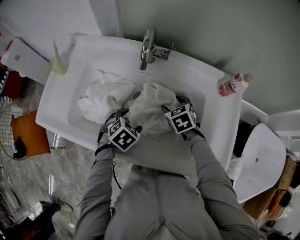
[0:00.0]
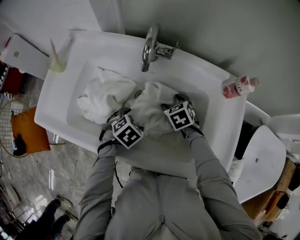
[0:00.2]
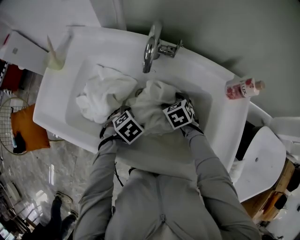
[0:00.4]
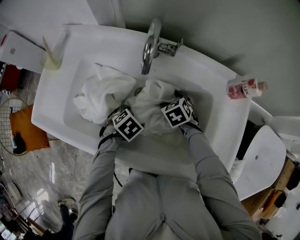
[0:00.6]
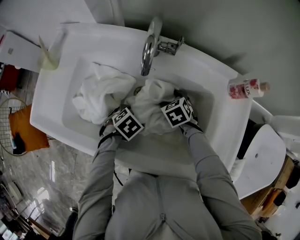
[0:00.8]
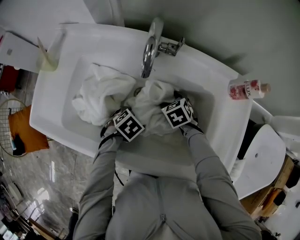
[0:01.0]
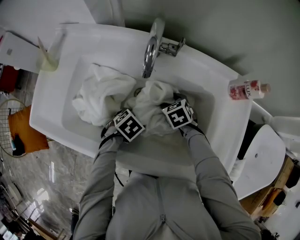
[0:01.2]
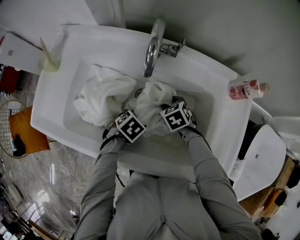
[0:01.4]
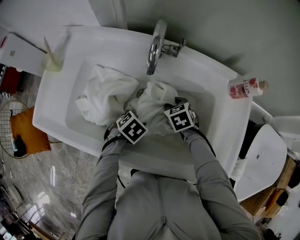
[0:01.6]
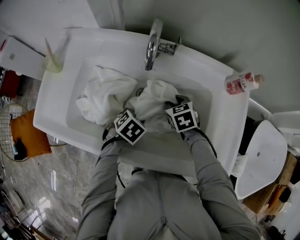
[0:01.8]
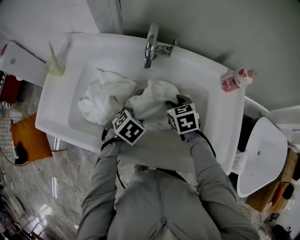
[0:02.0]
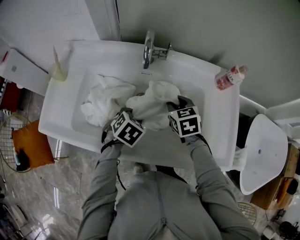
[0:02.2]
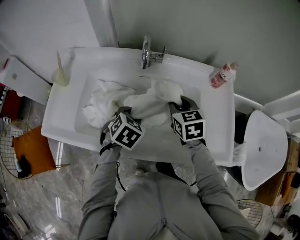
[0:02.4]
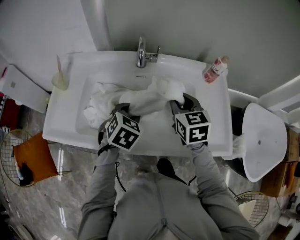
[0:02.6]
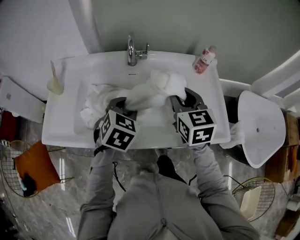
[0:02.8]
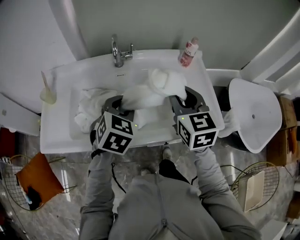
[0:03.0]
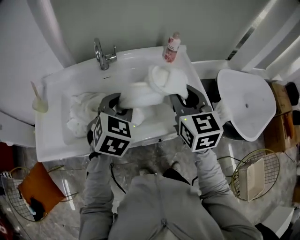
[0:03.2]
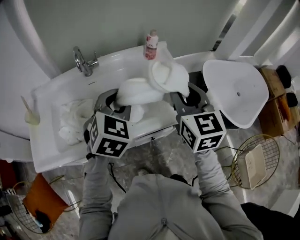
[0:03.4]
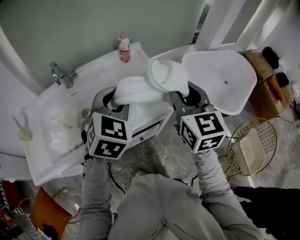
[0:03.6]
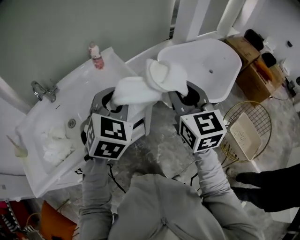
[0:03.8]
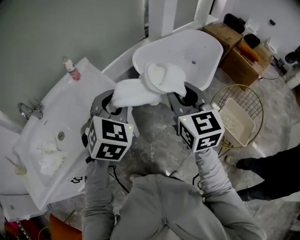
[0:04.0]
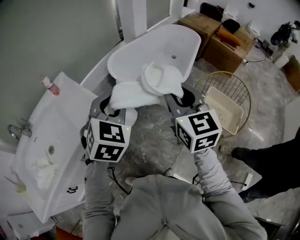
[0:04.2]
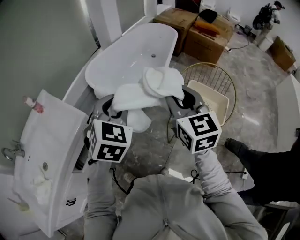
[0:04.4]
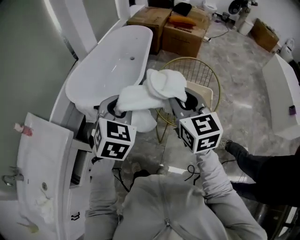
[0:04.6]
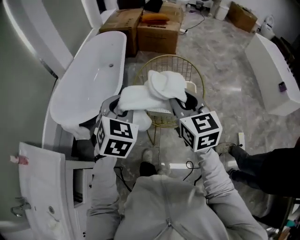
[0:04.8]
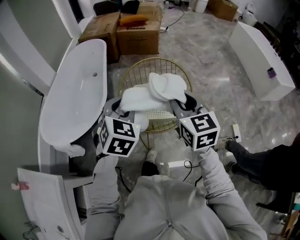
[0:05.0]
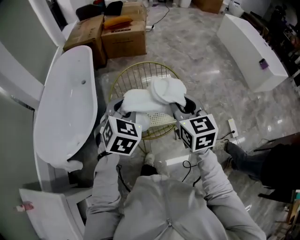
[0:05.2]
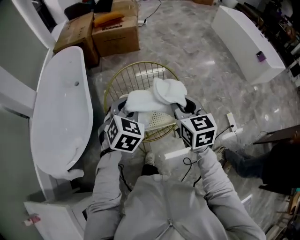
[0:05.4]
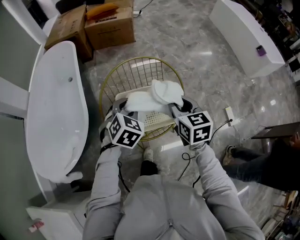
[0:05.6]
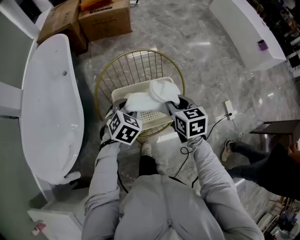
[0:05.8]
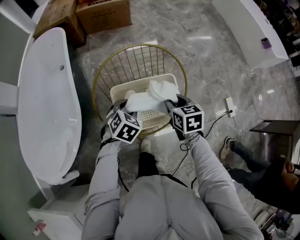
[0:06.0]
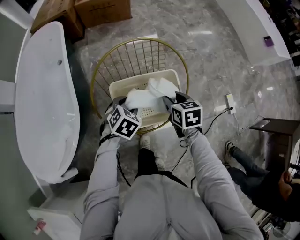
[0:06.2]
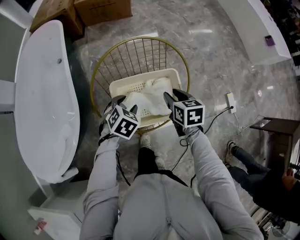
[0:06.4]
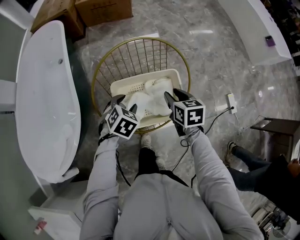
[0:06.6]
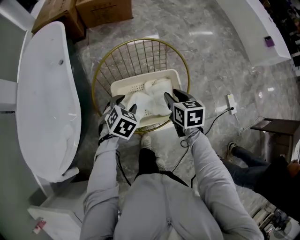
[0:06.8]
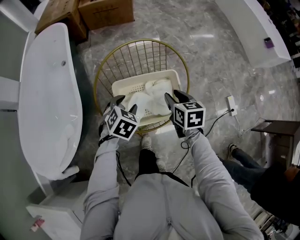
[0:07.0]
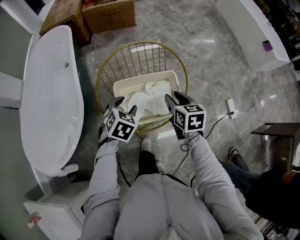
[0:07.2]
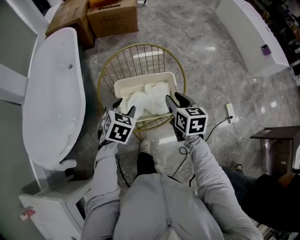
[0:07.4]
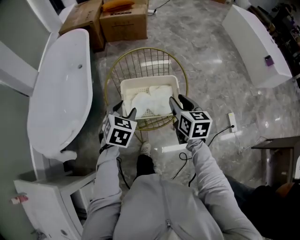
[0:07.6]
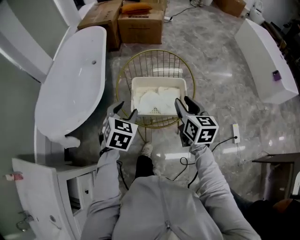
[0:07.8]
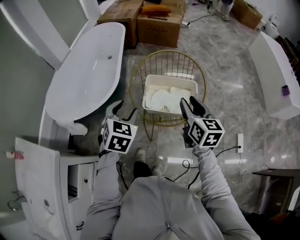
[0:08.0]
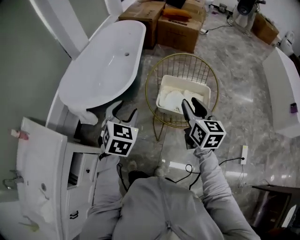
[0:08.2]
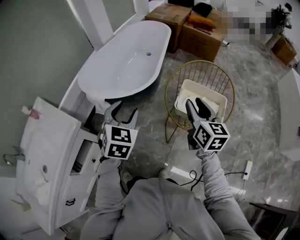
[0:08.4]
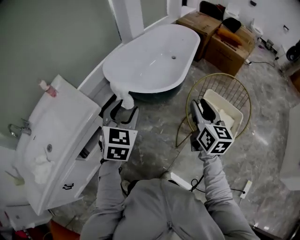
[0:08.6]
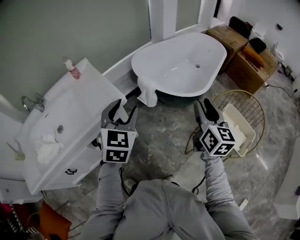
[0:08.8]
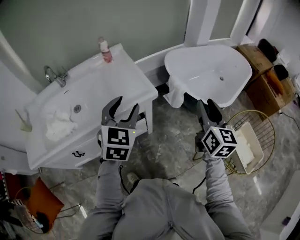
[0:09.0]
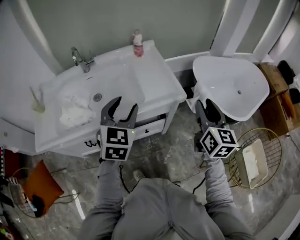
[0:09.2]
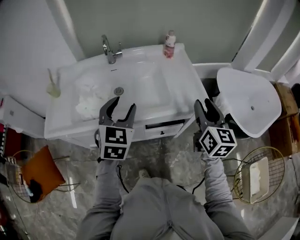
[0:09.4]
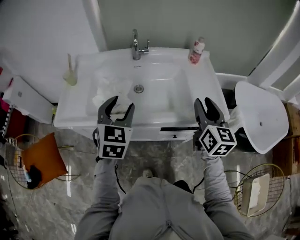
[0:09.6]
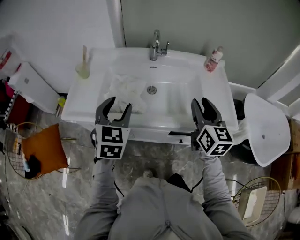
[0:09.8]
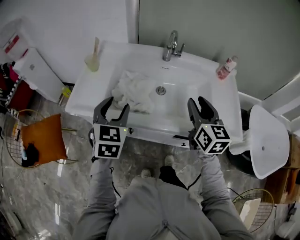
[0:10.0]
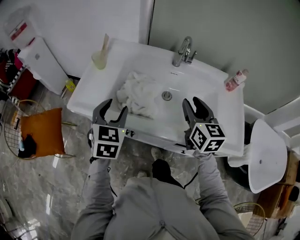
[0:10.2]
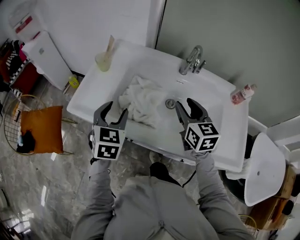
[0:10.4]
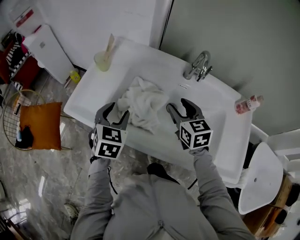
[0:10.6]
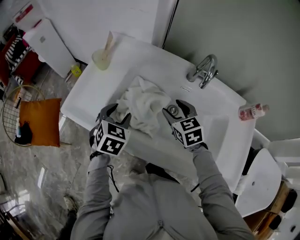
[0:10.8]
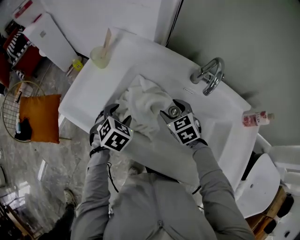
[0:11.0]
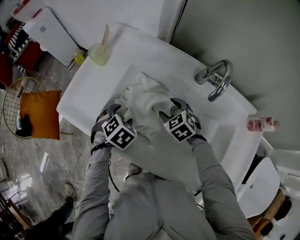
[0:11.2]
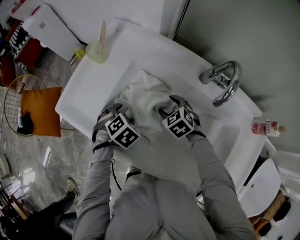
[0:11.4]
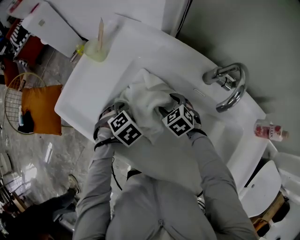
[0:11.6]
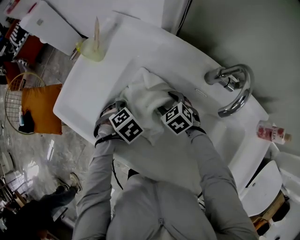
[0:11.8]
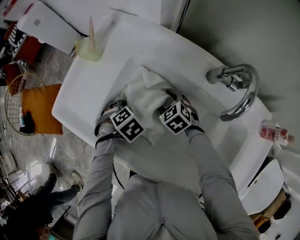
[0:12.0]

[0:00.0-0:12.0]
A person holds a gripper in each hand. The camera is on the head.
0:00.0 to 0:01.6: Both grippers travel together downward, some 5 cm. The left gripper closes its fingers, while the right gripper closes its fingers.
0:01.6 to 0:03.0: The left gripper goes roughly 25 cm upward, and tilts its fingers some 30 degrees upward; the right gripper heads upward and backward, covering about 35 cm, and tilts its fingers roughly 40 degrees upward.
0:03.0 to 0:04.4: The pair of grippers is taken some 70 cm. The right gripper changes its angle by approximately 50 degrees, while the left gripper swivels roughly 50 degrees.
0:04.4 to 0:06.0: The pair of grippers is taken some 50 cm. The left gripper swivels some 60 degrees, while the right gripper tilts its fingers about 30 degrees downward.
0:06.0 to 0:07.6: Both grippers move upward and backward, approximately 15 cm.
0:07.6 to 0:09.0: Both grippers are carried about 60 cm. The right gripper changes its angle by roughly 60 degrees. Meanwhile the left gripper swivels approximately 70 degrees.
0:09.0 to 0:10.4: The two grippers travel together, approximately 60 cm. The right gripper swivels approximately 60 degrees; the left gripper changes its angle by some 50 degrees.
0:10.4 to 0:12.0: Both grippers travel together downward, roughly 30 cm. The right gripper tips its fingers downward by roughly 40 degrees, and opens. Meanwhile the left gripper tips its fingers downward by roughly 50 degrees.

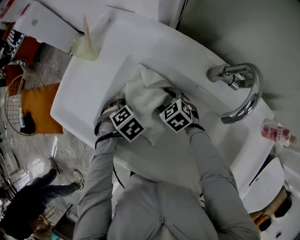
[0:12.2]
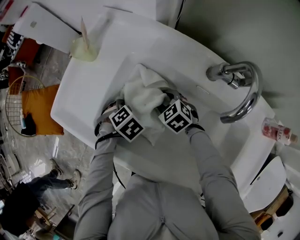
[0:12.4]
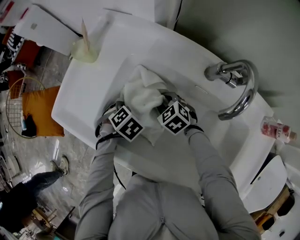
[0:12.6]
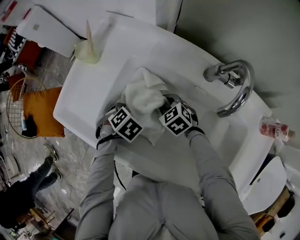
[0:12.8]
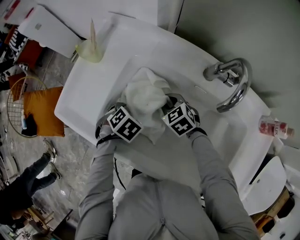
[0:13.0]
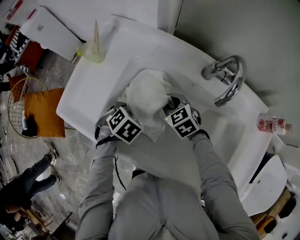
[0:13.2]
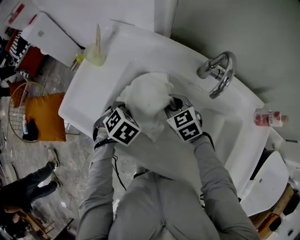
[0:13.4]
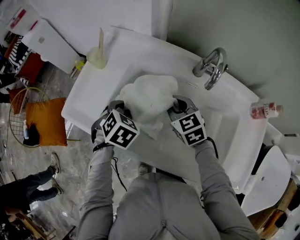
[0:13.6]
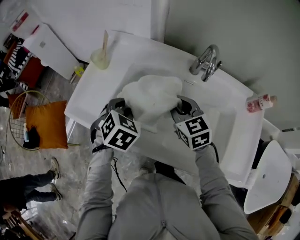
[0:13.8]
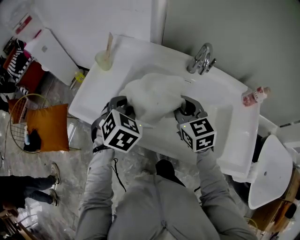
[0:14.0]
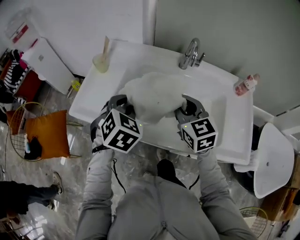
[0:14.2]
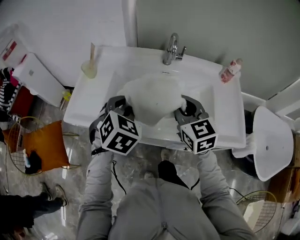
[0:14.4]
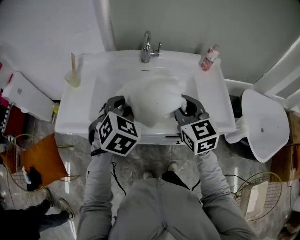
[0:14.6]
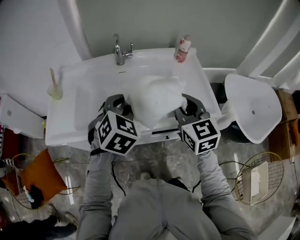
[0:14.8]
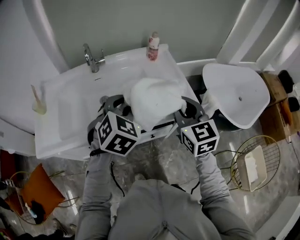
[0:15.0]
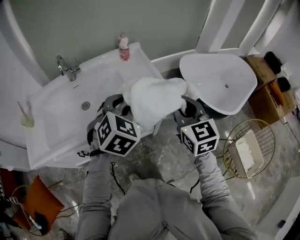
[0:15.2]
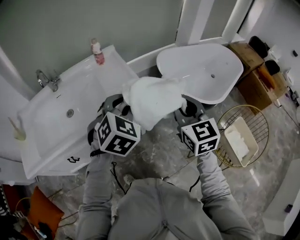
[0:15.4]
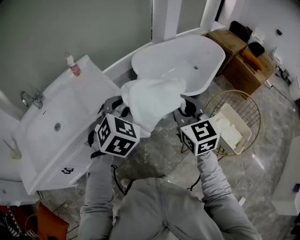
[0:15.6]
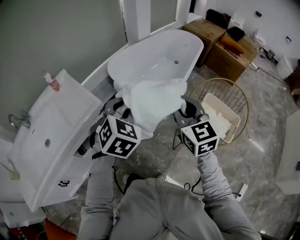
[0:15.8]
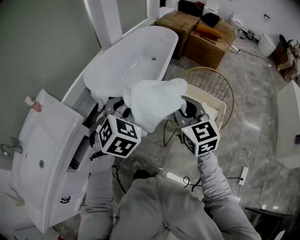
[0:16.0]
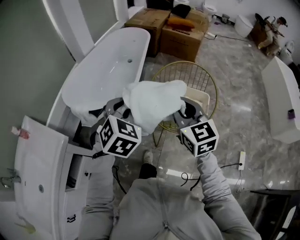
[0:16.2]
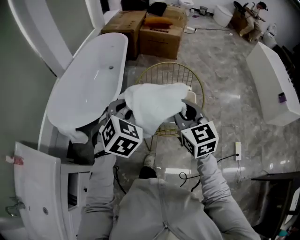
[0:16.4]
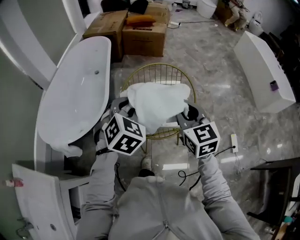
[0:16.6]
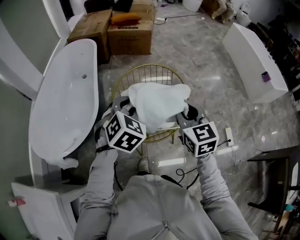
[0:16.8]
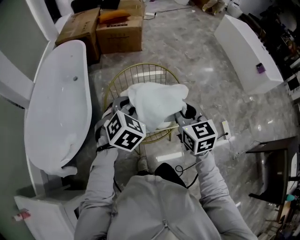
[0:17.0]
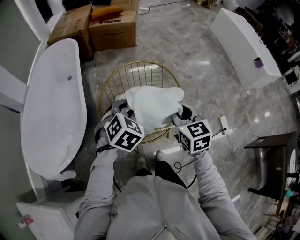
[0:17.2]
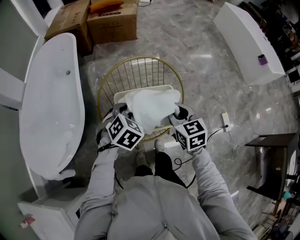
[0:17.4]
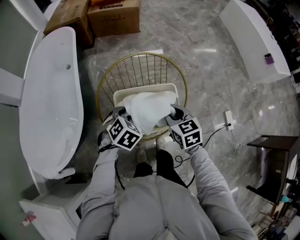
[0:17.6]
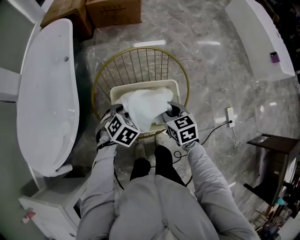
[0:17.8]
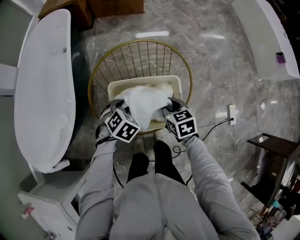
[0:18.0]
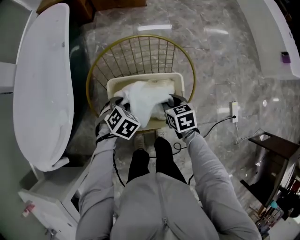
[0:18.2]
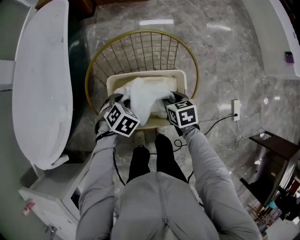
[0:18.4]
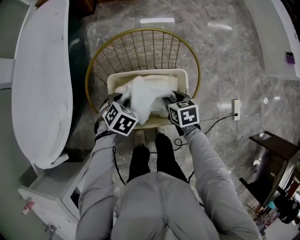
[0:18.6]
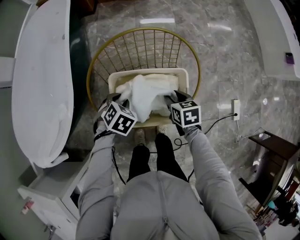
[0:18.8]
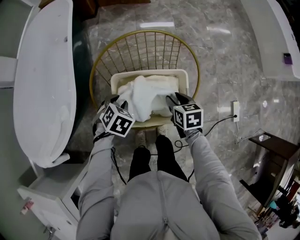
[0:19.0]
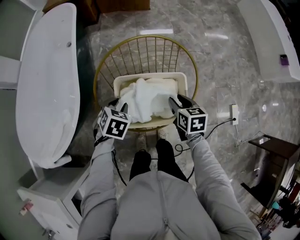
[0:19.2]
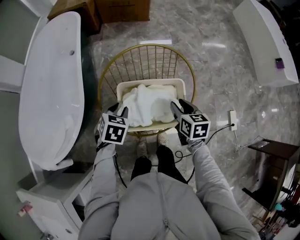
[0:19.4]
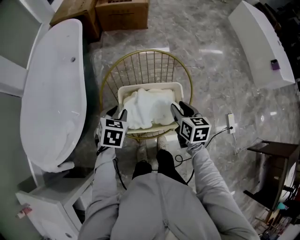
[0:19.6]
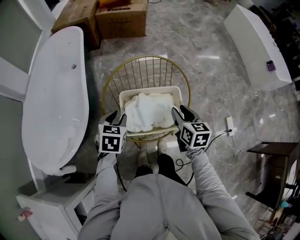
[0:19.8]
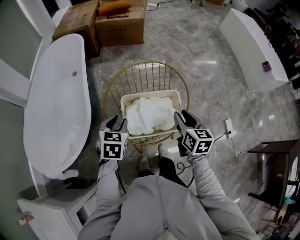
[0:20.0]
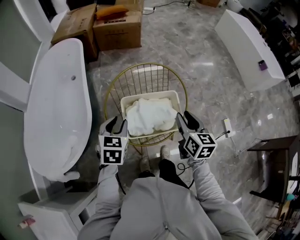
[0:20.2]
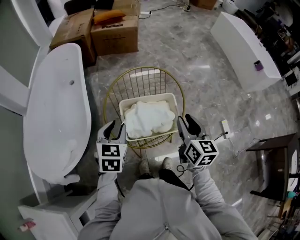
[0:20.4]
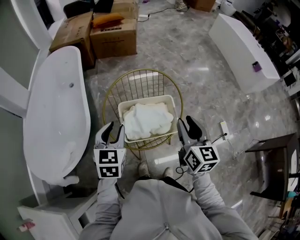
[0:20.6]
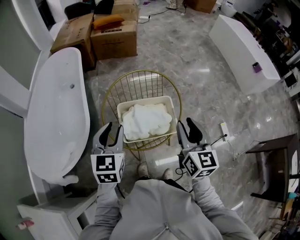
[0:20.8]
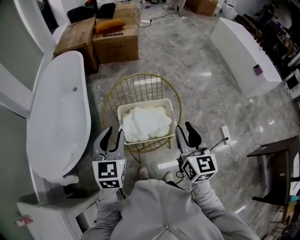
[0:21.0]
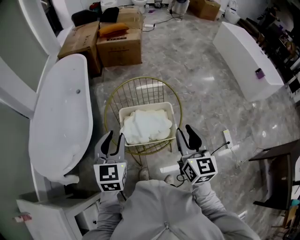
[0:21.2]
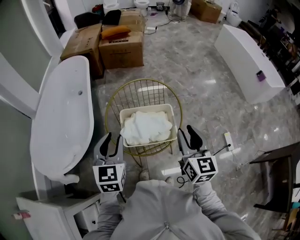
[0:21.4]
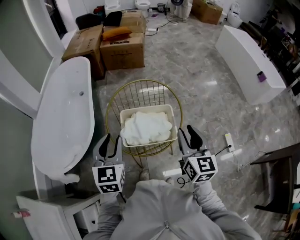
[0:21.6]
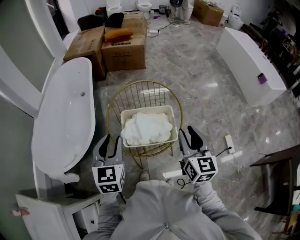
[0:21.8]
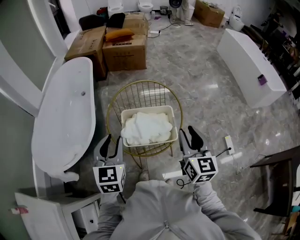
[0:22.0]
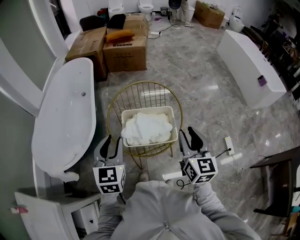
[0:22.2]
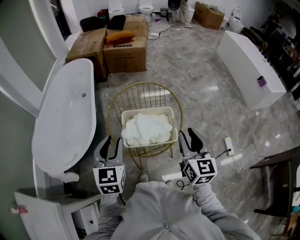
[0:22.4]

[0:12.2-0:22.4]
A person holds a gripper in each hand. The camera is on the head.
0:12.2 to 0:13.6: The grippers both shift upward by about 15 cm. The left gripper turns by approximately 20 degrees, and closes, while the right gripper rotates approximately 30 degrees, and closes up.
0:13.6 to 0:15.2: The two grippers travel together, about 50 cm. The right gripper turns by some 60 degrees. Meanwhile the left gripper changes its angle by roughly 60 degrees.
0:15.2 to 0:16.6: Both grippers are carried approximately 70 cm. The left gripper rotates roughly 70 degrees. The right gripper turns by some 70 degrees.
0:16.6 to 0:18.0: Both grippers travel together downward and forward, about 35 cm. The right gripper tilts its fingers roughly 30 degrees downward, while the left gripper changes its angle by approximately 30 degrees.
0:18.0 to 0:19.4: The left gripper is displaced upward and to the left by about 5 cm, and changes its angle by roughly 20 degrees.
0:19.4 to 0:21.0: Both grippers travel together upward and backward, about 25 cm. The left gripper points its fingers some 40 degrees further upward, while the right gripper angles its fingers upward, by roughly 30 degrees.
0:21.0 to 0:22.4: The left gripper shifts by roughly 5 cm.

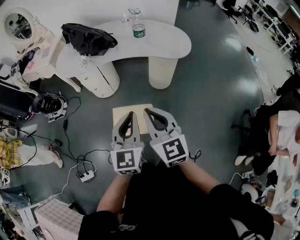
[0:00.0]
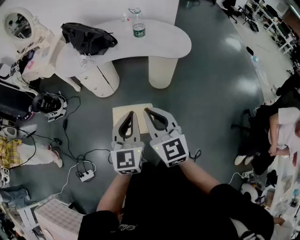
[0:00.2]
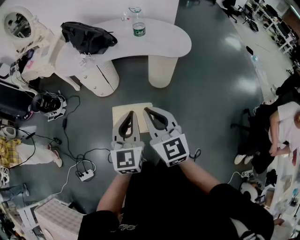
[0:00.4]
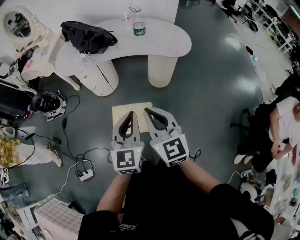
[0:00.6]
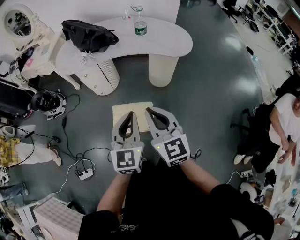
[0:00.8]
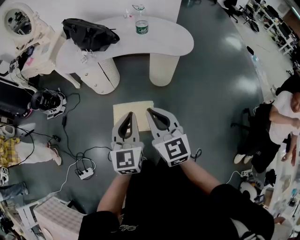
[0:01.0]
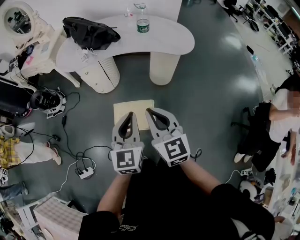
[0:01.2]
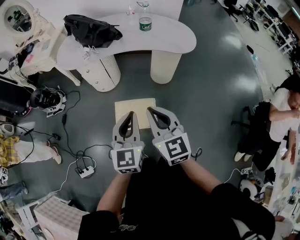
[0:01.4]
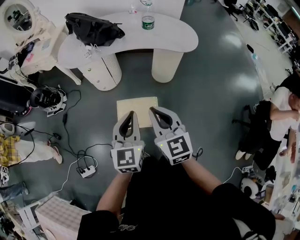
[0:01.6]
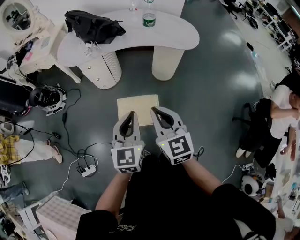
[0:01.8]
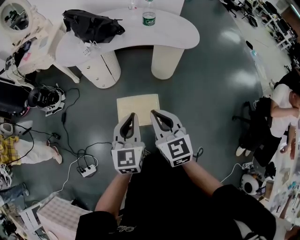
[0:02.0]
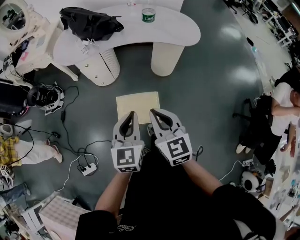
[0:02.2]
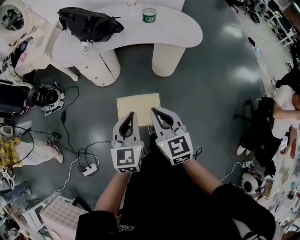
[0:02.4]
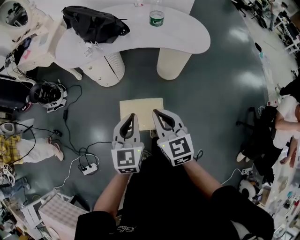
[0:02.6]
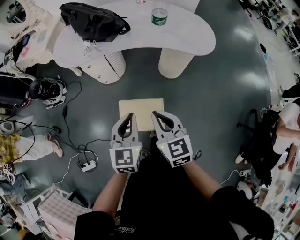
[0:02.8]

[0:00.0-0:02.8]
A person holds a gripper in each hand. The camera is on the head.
0:00.0 to 0:01.4: The left gripper changes place by about 5 cm.
0:01.4 to 0:02.8: The two grippers go approximately 15 cm forward and downward.
